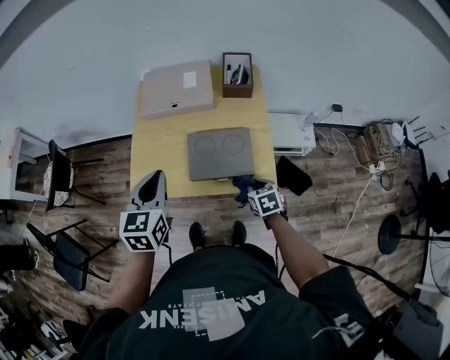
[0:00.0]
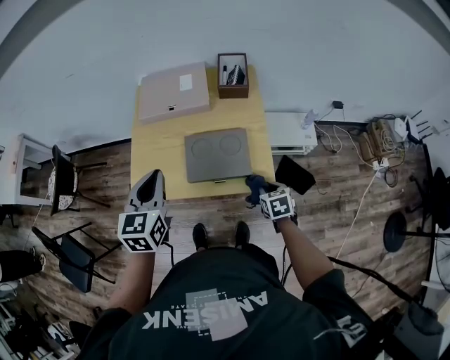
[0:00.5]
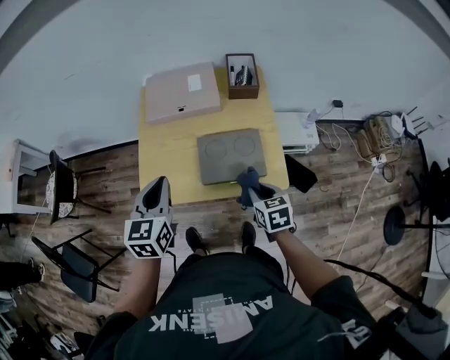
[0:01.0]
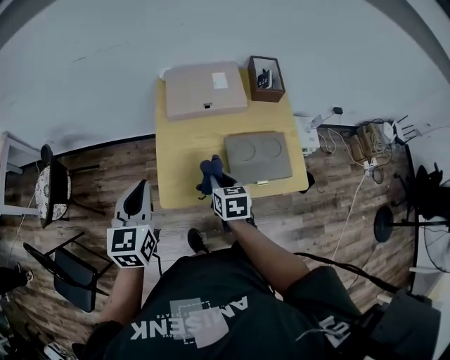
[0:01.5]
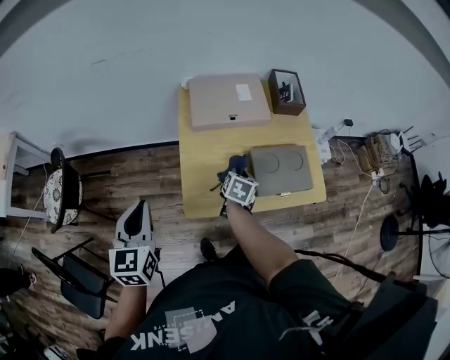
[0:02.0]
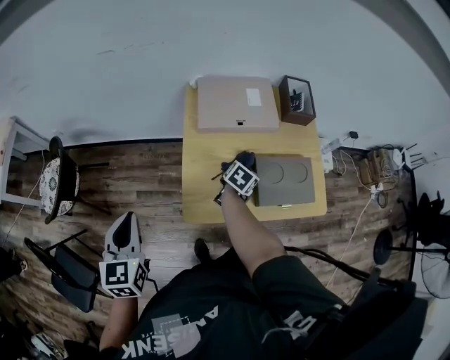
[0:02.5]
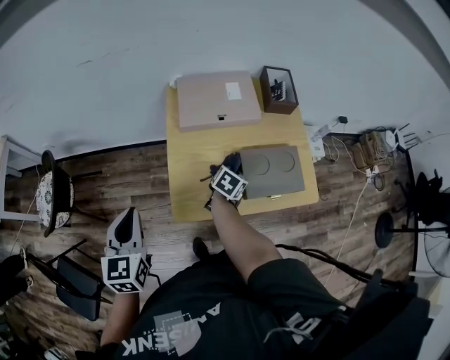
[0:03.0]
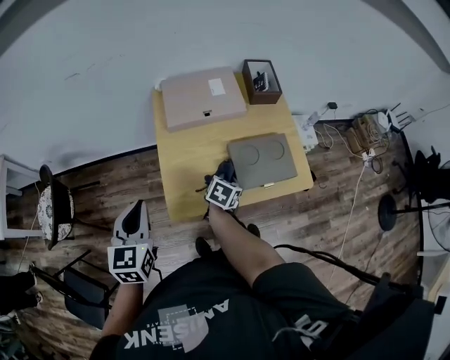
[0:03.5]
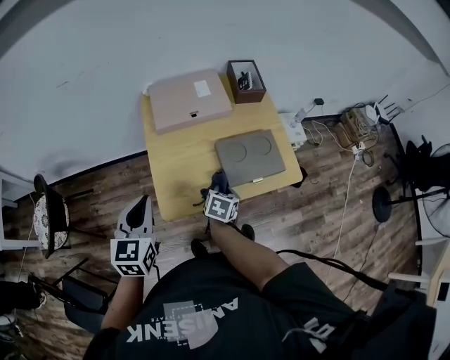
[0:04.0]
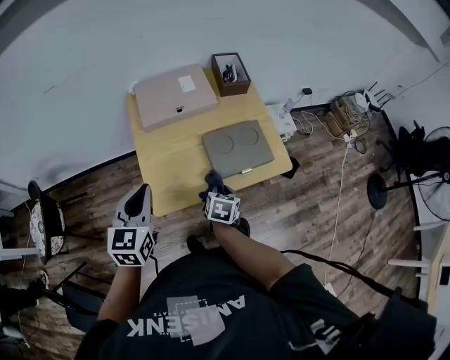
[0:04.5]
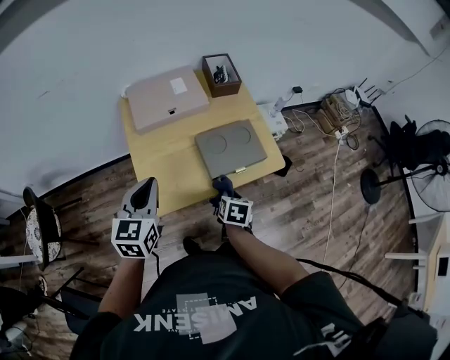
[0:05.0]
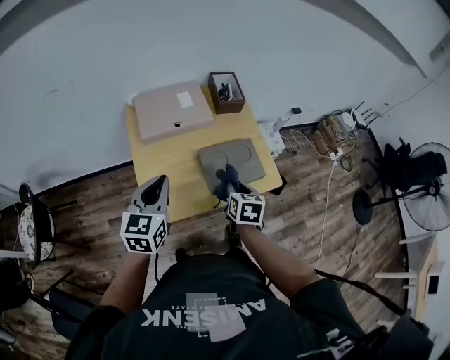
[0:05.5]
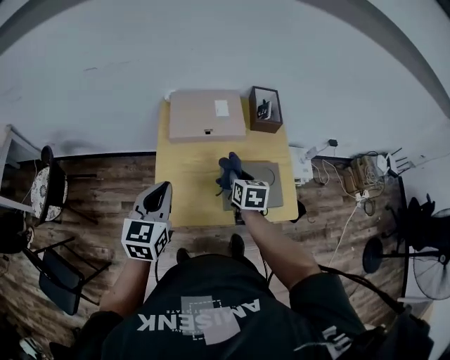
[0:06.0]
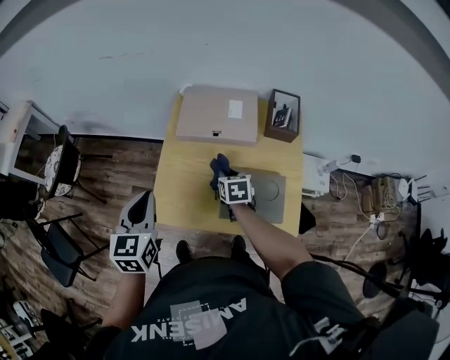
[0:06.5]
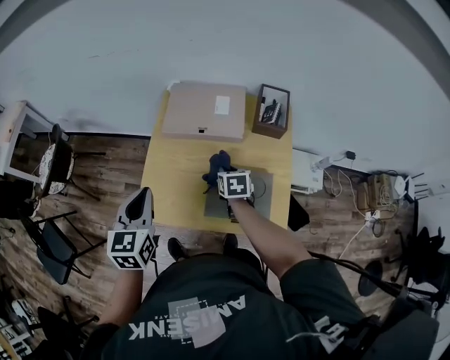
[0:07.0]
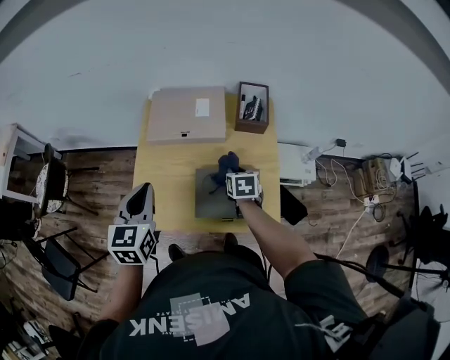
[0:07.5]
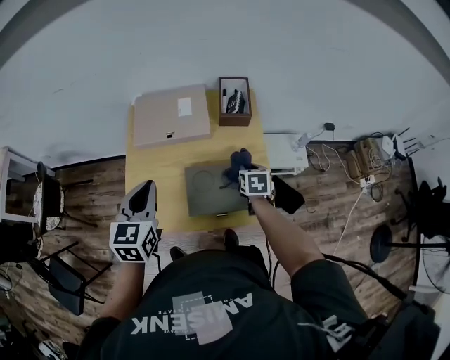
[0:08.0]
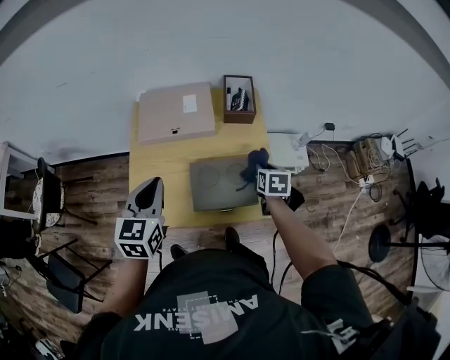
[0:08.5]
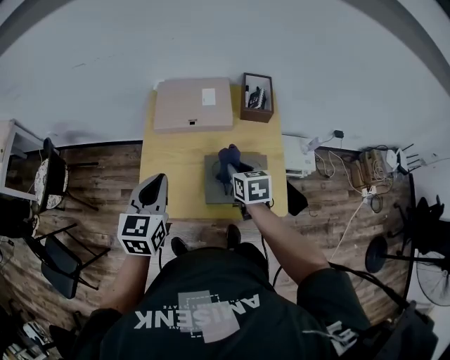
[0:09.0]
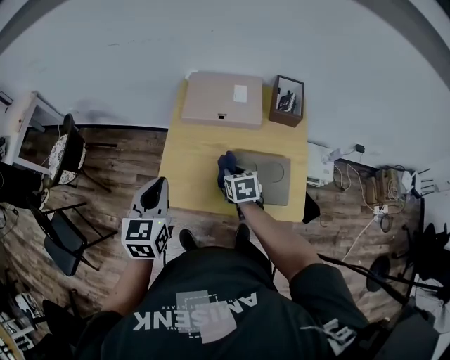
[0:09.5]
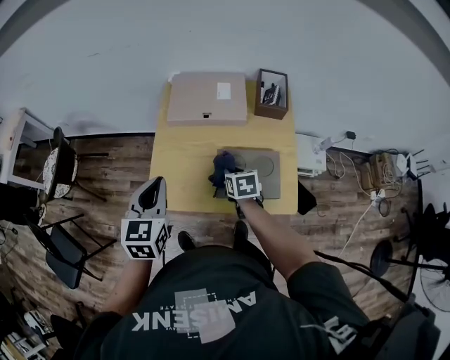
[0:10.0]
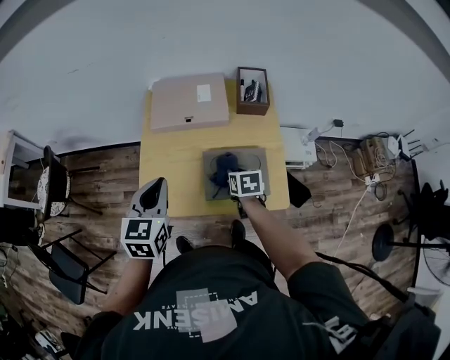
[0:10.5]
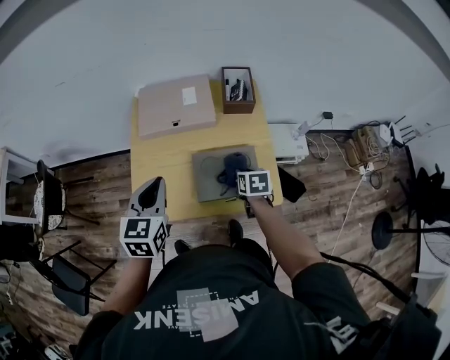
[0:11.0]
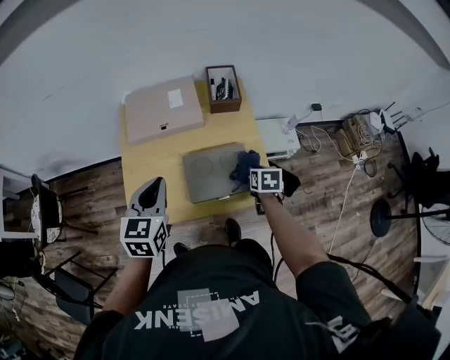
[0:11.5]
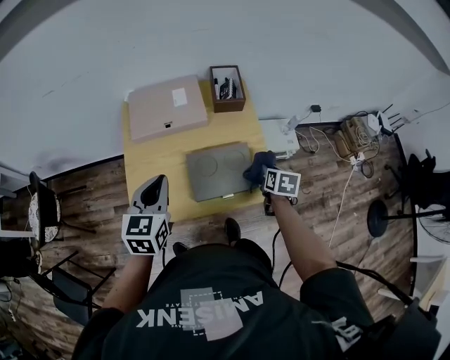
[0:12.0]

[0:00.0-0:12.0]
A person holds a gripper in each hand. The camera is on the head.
0:00.0 to 0:02.0: The right gripper is displaced to the left and forward by about 30 cm, and rotates about 40 degrees; the left gripper moves to the left, about 30 cm.
0:02.0 to 0:04.0: The left gripper travels to the right by approximately 10 cm, while the right gripper shifts roughly 10 cm backward.
0:04.0 to 0:06.0: The right gripper moves forward and upward, approximately 15 cm, and rotates approximately 30 degrees. Meanwhile the left gripper heads forward and to the right, covering approximately 10 cm.
0:06.0 to 0:08.0: The left gripper heads to the right, covering some 10 cm, while the right gripper goes about 20 cm to the right.
0:08.0 to 0:10.0: The right gripper goes approximately 20 cm to the left, while the left gripper travels to the left and backward by approximately 10 cm.
0:10.0 to 0:12.0: The right gripper ends up roughly 25 cm from where it was, and turns by approximately 30 degrees, while the left gripper shifts by about 10 cm.

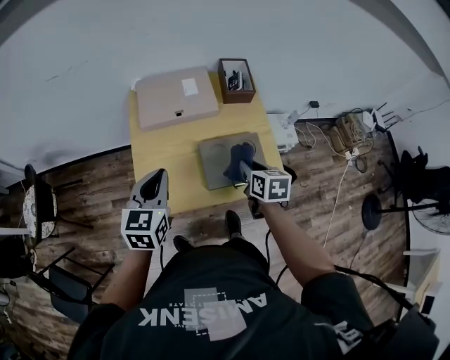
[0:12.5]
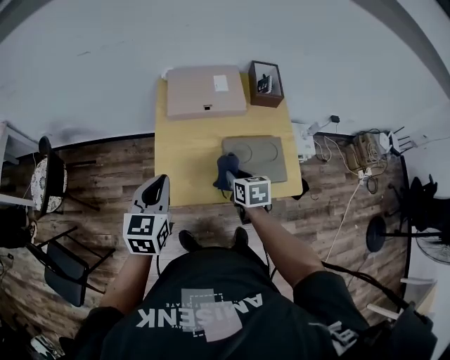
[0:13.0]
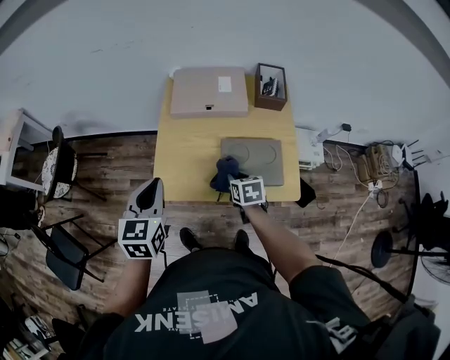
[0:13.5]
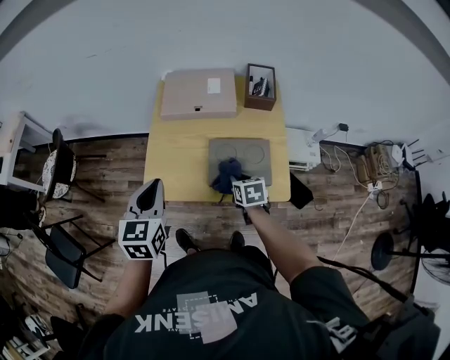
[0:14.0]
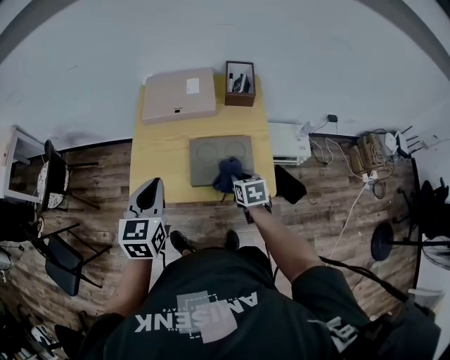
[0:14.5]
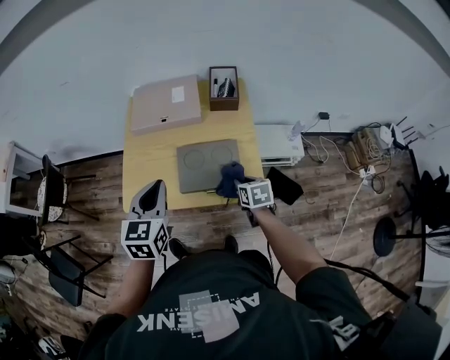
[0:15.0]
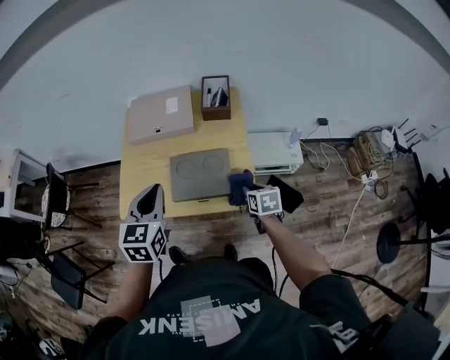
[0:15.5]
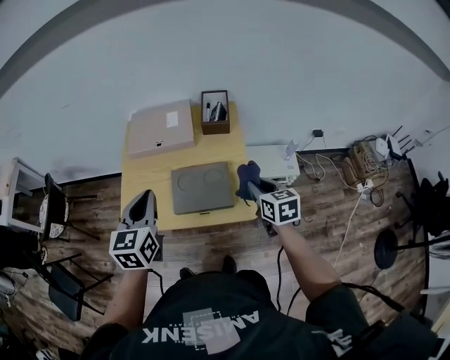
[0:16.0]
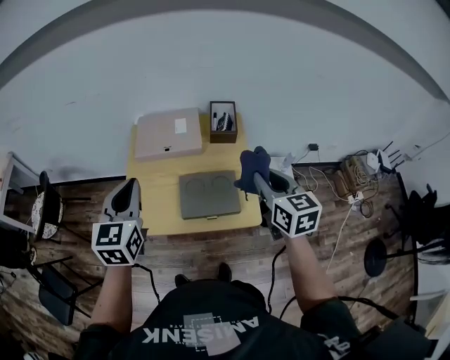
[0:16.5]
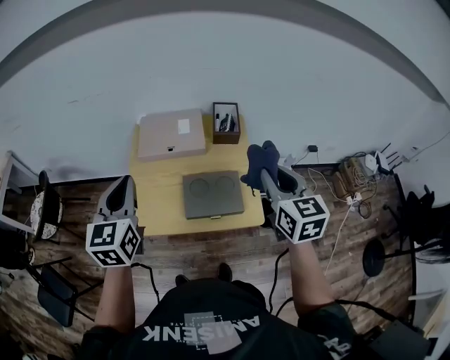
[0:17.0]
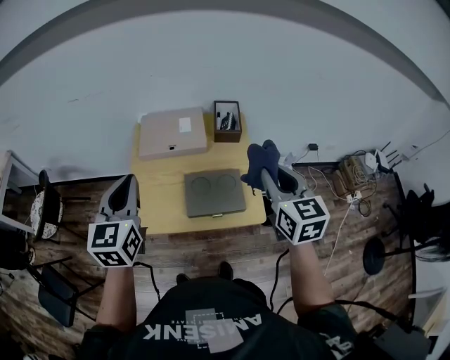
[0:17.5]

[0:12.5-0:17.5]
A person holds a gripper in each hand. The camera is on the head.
0:12.5 to 0:15.0: The right gripper moves to the right and downward, approximately 15 cm, while the left gripper is displaced to the right and backward by about 15 cm.
0:15.0 to 0:17.5: The right gripper shifts some 35 cm upward, and tips its fingers upward by about 30 degrees. The left gripper moves upward and to the left, about 15 cm.

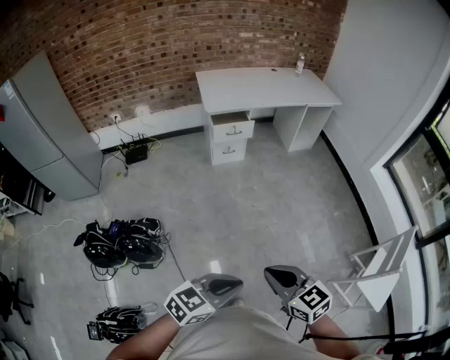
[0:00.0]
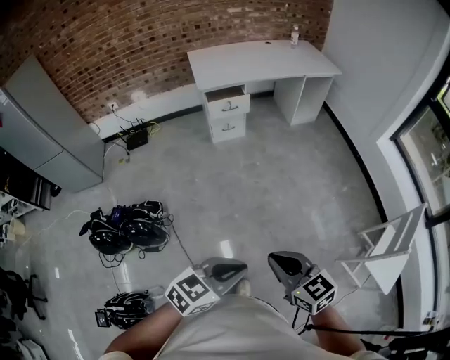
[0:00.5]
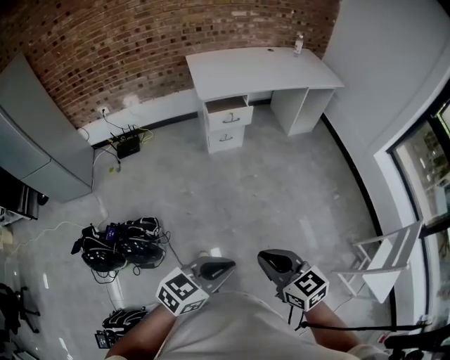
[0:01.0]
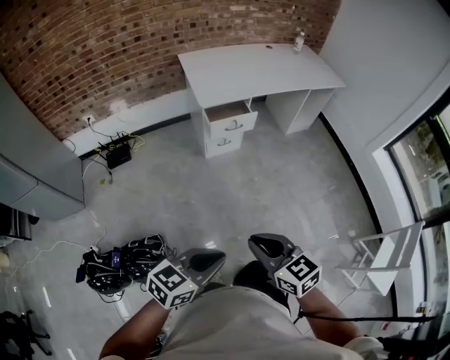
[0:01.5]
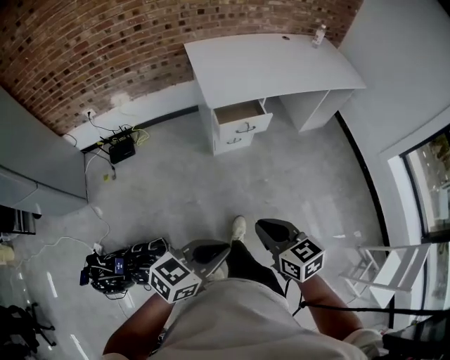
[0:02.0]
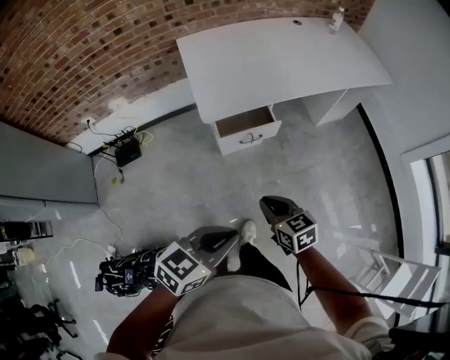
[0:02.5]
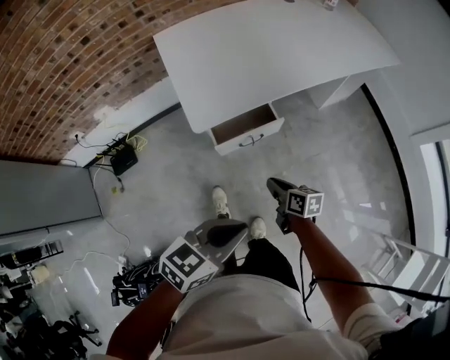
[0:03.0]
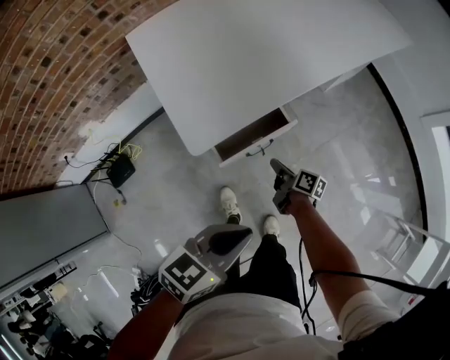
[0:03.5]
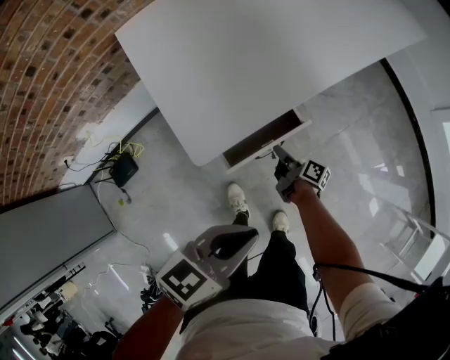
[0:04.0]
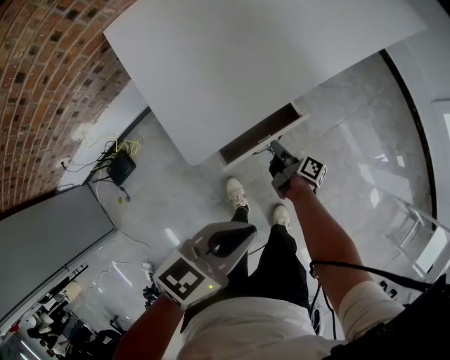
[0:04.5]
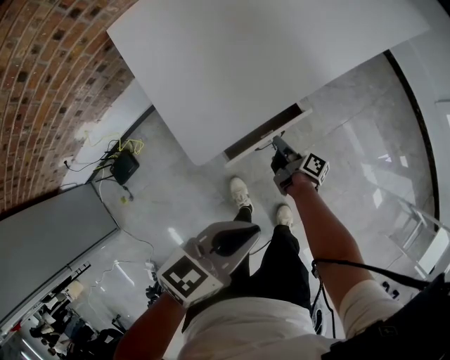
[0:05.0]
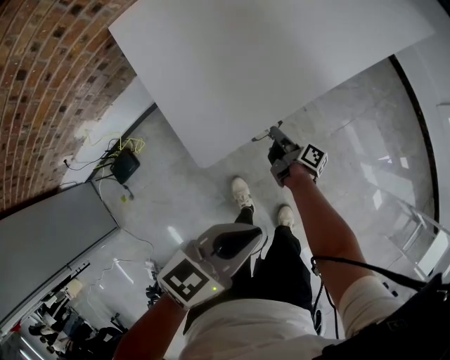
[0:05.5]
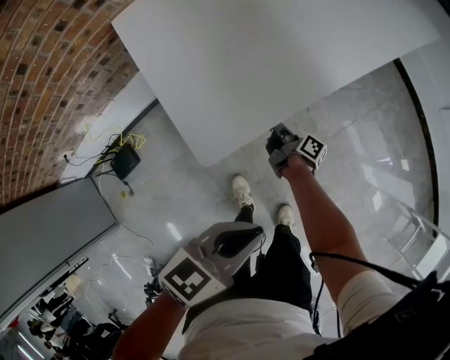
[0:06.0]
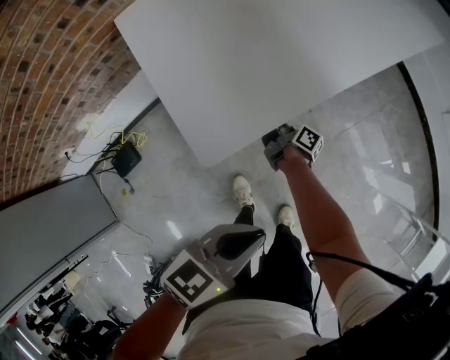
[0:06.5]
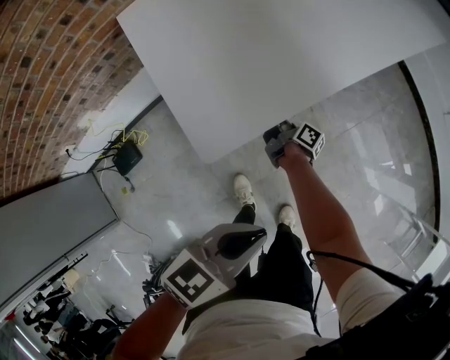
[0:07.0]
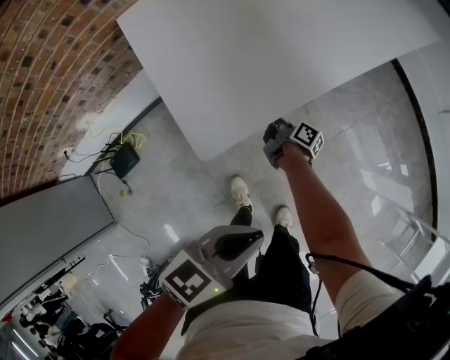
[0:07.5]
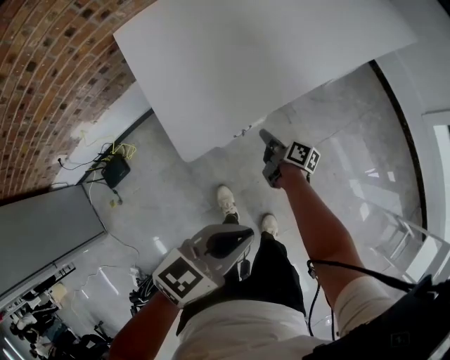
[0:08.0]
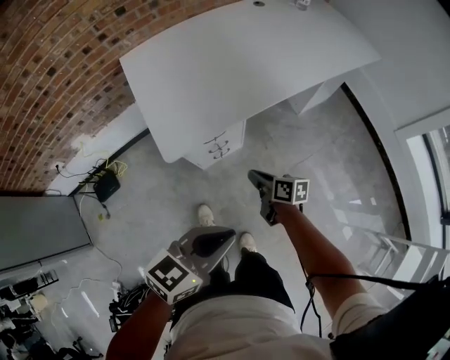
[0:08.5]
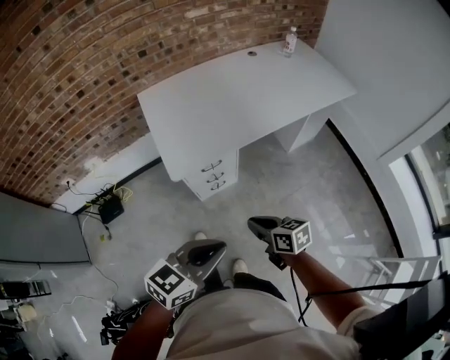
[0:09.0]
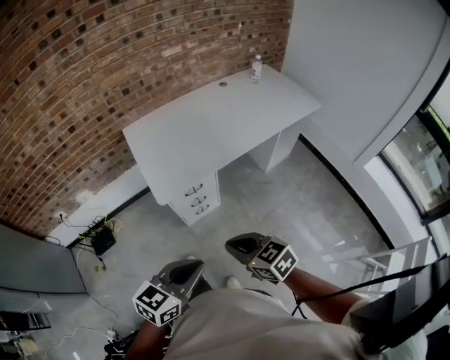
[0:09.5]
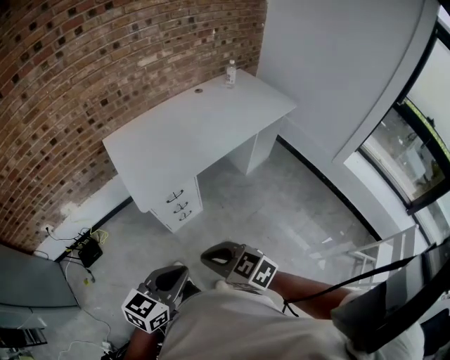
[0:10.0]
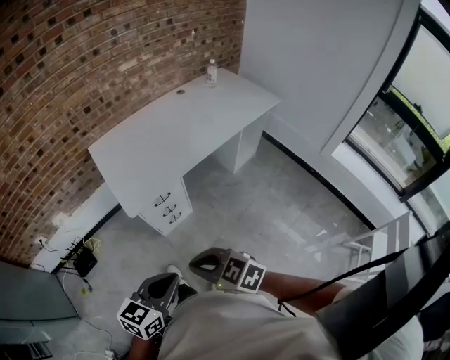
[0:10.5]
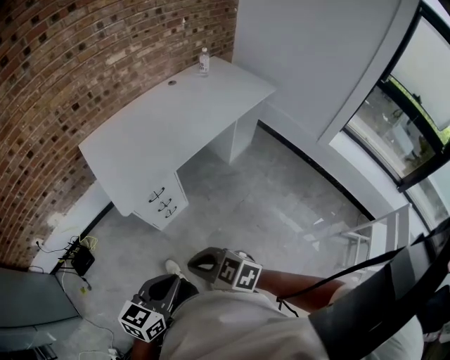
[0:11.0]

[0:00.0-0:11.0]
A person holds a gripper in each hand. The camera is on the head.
0:00.0 to 0:02.0: Both grippers are carried forward and to the left, about 50 cm.
0:02.0 to 0:03.5: The two grippers travel together, forward, about 50 cm. The right gripper heads downward, covering some 35 cm, and rotates around the line of its fingers by approximately 70 degrees, clockwise from behind.
0:03.5 to 0:05.5: The right gripper moves forward, downward and to the left, roughly 15 cm. The left gripper heads forward, covering about 5 cm.
0:05.5 to 0:07.5: The right gripper changes place by approximately 5 cm.
0:07.5 to 0:09.0: The right gripper is displaced upward, backward and to the right by about 50 cm, and rotates around the line of its fingers by approximately 60 degrees, counterclockwise from behind. Meanwhile the left gripper travels upward, backward and to the right by some 25 cm.
0:09.0 to 0:11.0: The left gripper moves backward, roughly 5 cm; the right gripper moves upward, backward and to the left, about 20 cm, and turns by about 40 degrees.
